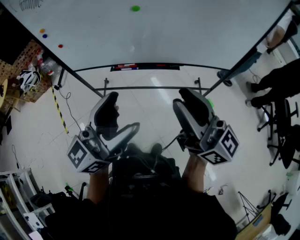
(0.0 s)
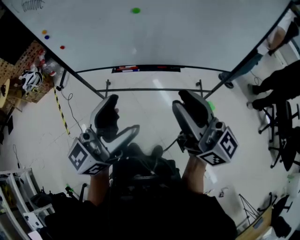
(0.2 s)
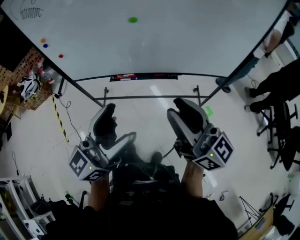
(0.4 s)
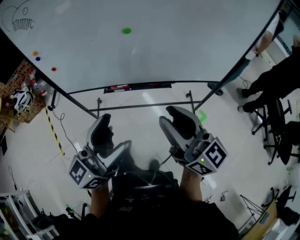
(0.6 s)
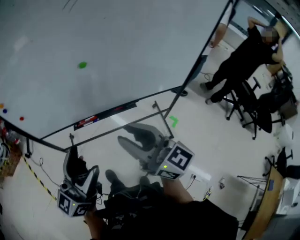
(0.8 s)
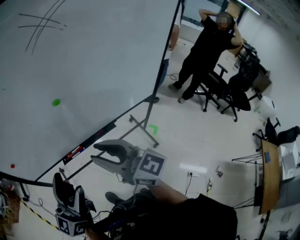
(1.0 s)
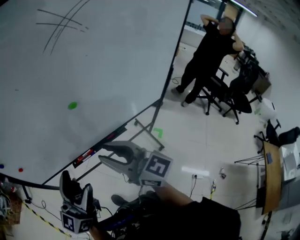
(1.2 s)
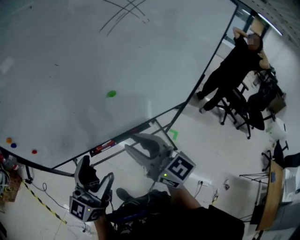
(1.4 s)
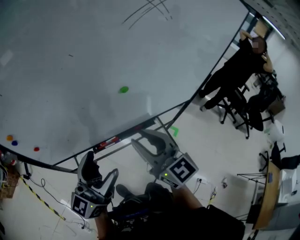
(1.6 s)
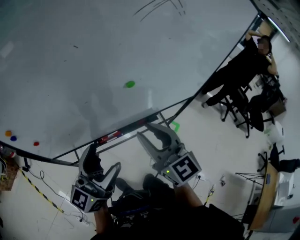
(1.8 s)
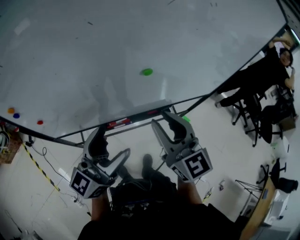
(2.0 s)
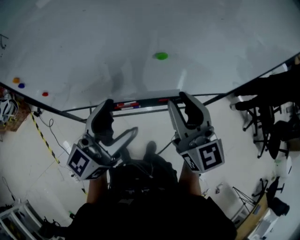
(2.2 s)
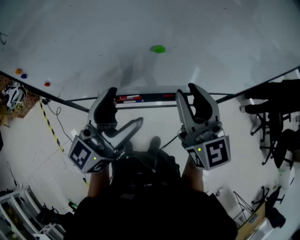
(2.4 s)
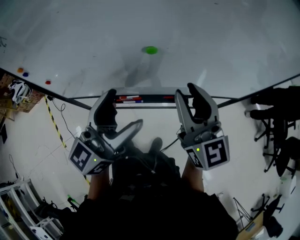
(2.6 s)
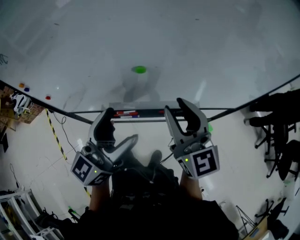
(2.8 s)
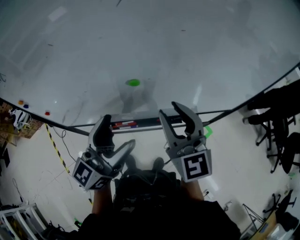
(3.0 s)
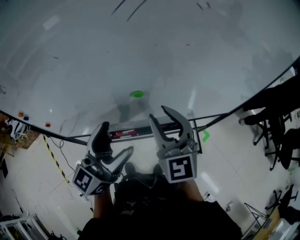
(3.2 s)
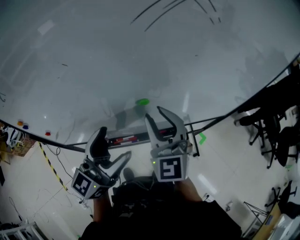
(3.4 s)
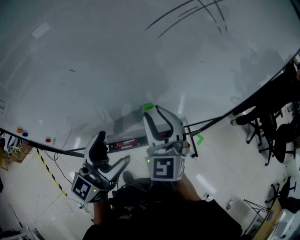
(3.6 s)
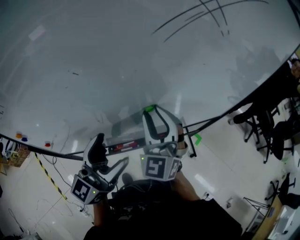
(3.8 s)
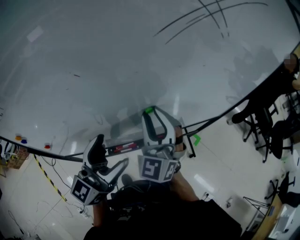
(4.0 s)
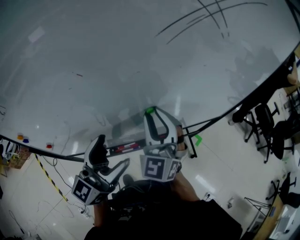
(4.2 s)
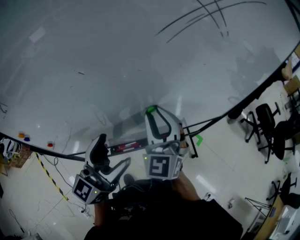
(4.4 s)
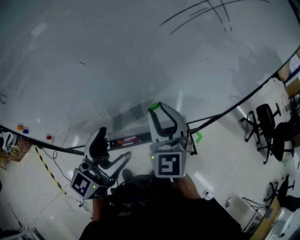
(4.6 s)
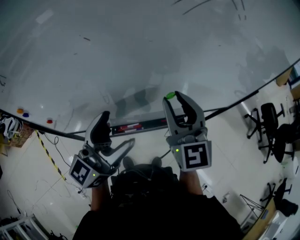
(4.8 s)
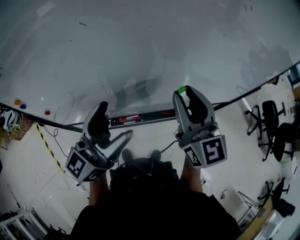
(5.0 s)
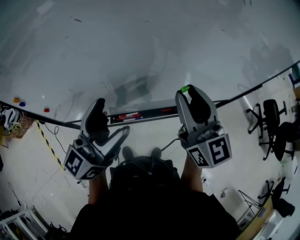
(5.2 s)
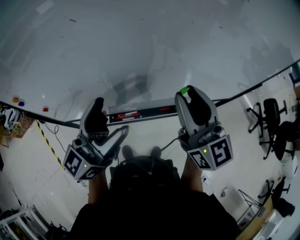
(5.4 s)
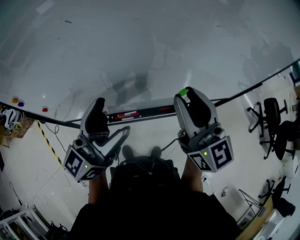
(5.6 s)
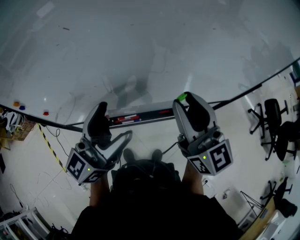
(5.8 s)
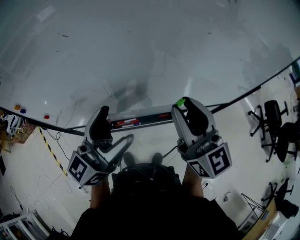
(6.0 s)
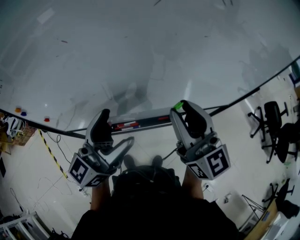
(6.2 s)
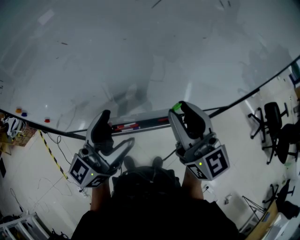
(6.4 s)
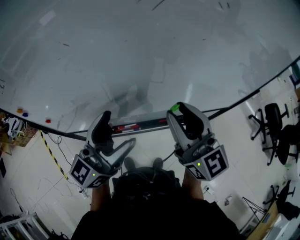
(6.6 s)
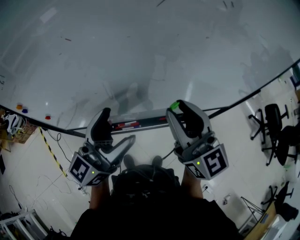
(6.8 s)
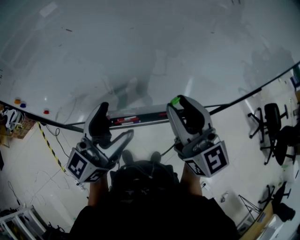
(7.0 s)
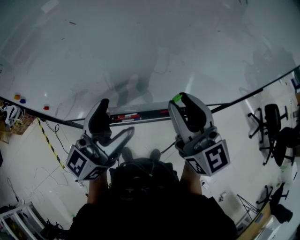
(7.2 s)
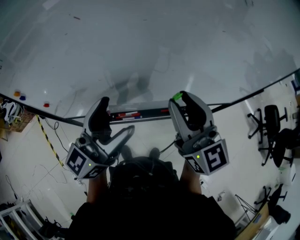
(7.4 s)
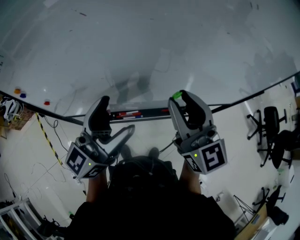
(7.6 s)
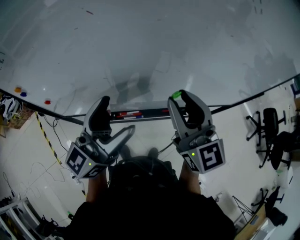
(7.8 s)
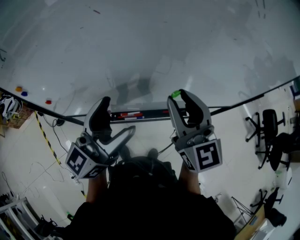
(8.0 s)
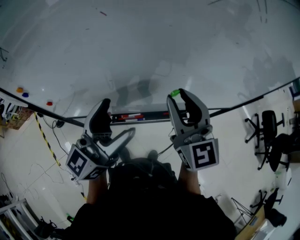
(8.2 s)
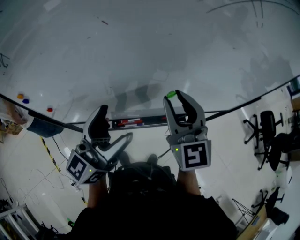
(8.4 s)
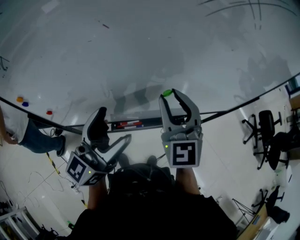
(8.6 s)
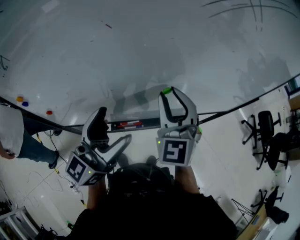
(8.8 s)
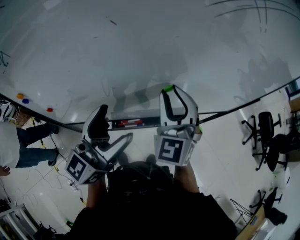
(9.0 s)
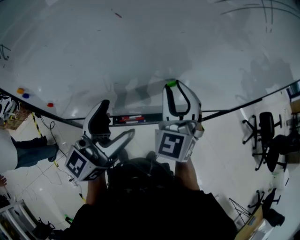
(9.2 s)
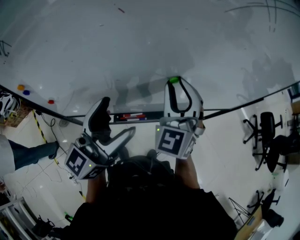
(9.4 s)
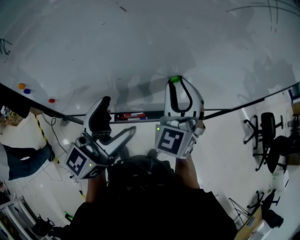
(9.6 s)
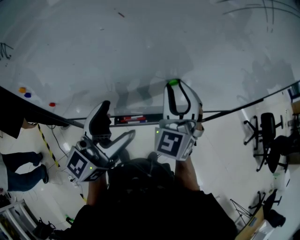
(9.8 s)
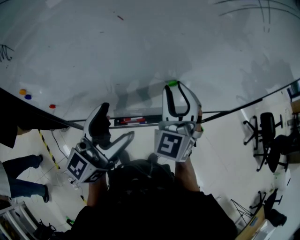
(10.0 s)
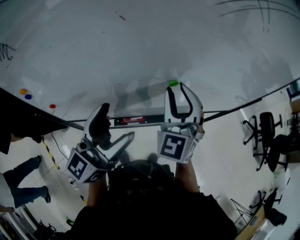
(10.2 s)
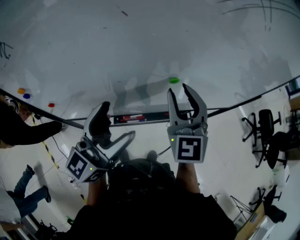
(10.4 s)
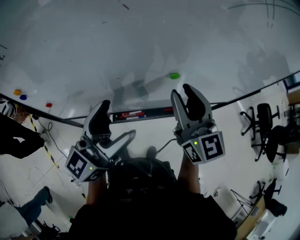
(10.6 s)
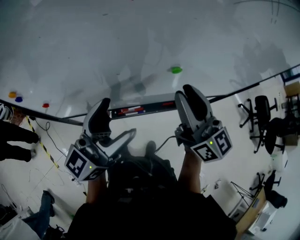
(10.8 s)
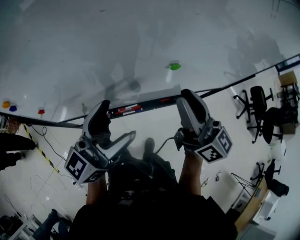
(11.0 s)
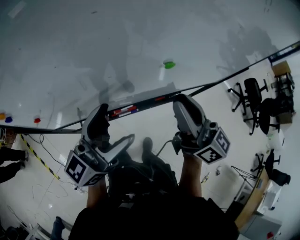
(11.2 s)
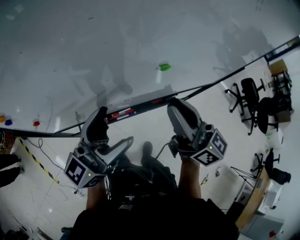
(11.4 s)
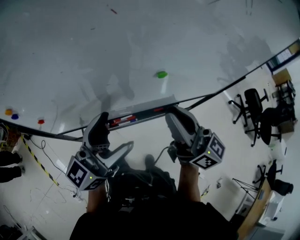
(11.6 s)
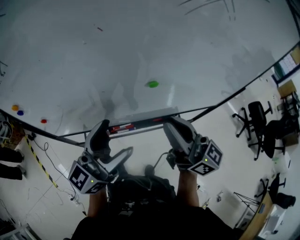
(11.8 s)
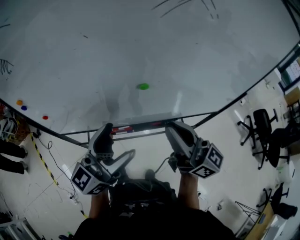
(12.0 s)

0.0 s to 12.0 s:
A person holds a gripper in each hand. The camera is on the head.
0.0 to 1.6 s: The two grippers go approximately 25 cm forward and to the left. The right gripper changes its angle by some 50 degrees.
1.6 to 3.0 s: The two grippers go approximately 15 cm to the right and forward.
3.0 to 4.4 s: Both grippers move to the left, about 10 cm. The right gripper changes its angle by about 30 degrees.
4.4 to 6.0 s: The right gripper heads to the right and backward, covering some 10 cm, and twists about 40 degrees clockwise, seen from behind.
6.0 to 7.6 s: There are only small adjustments of the grippers.
7.6 to 9.0 s: The right gripper moves to the left and forward, some 5 cm, and rotates approximately 40 degrees.
9.0 to 10.4 s: The grippers stay close to where they were, moving slightly.
10.4 to 12.0 s: The left gripper goes approximately 5 cm to the right. Meanwhile the right gripper shifts approximately 15 cm backward and to the right, turns by approximately 60 degrees, and closes.

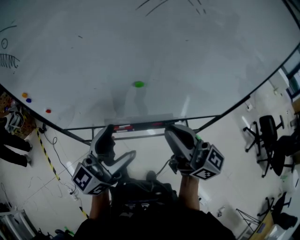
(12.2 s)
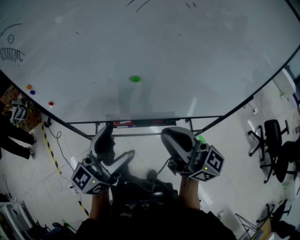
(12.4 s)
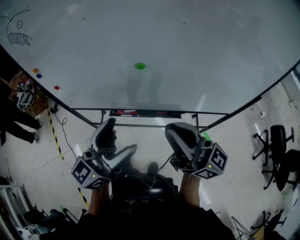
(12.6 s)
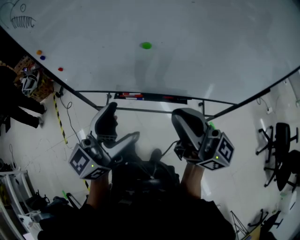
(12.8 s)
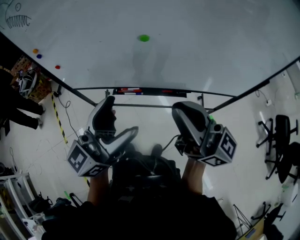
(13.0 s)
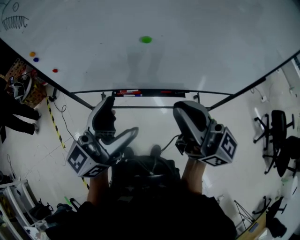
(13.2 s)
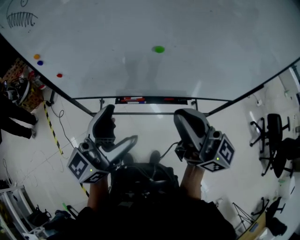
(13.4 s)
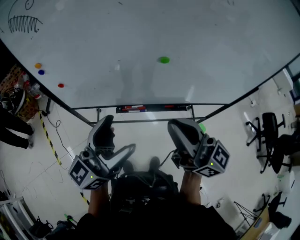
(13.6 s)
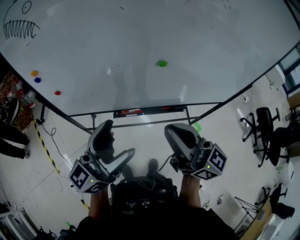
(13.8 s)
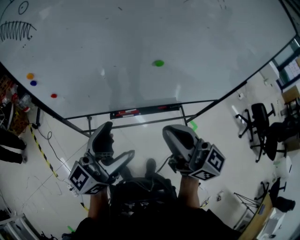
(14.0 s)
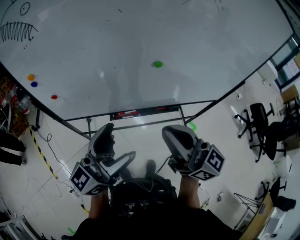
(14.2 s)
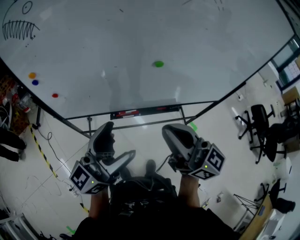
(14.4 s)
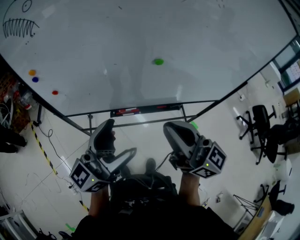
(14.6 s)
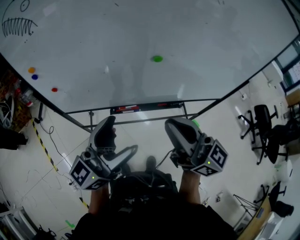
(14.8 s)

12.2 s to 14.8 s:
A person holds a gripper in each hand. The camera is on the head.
12.2 to 13.4 s: The right gripper changes place by approximately 5 cm. The left gripper travels backward by approximately 5 cm.

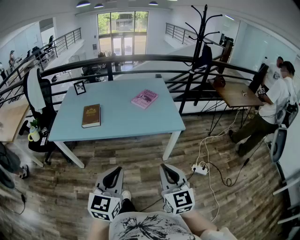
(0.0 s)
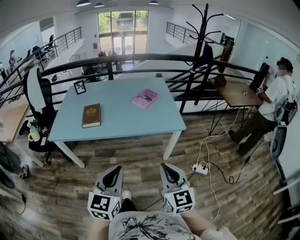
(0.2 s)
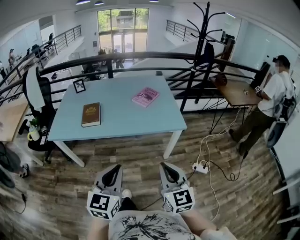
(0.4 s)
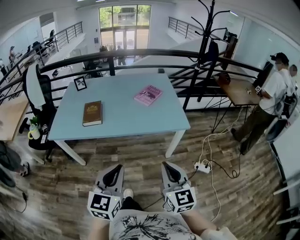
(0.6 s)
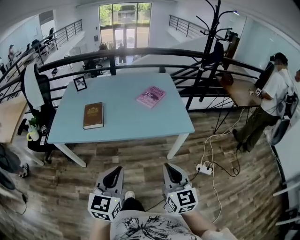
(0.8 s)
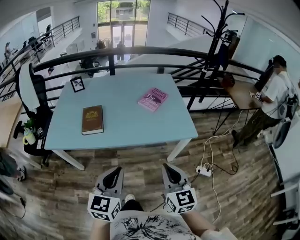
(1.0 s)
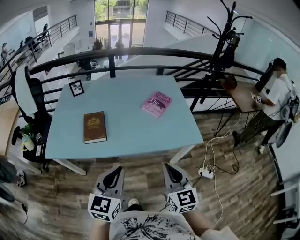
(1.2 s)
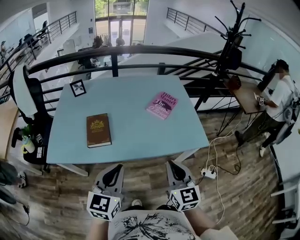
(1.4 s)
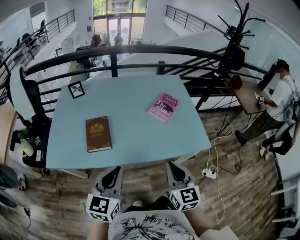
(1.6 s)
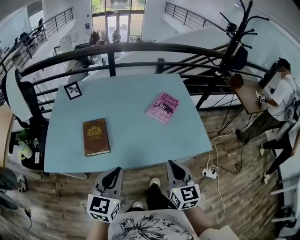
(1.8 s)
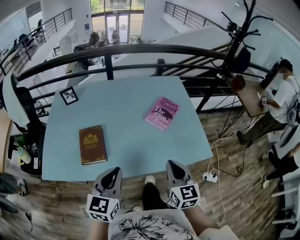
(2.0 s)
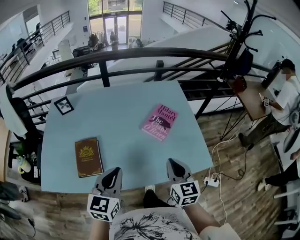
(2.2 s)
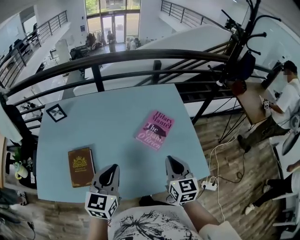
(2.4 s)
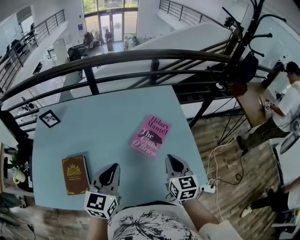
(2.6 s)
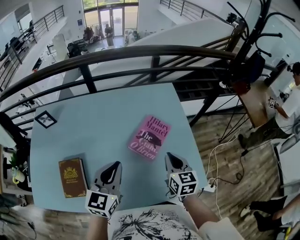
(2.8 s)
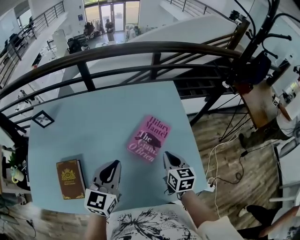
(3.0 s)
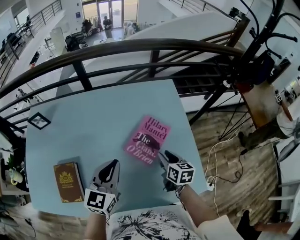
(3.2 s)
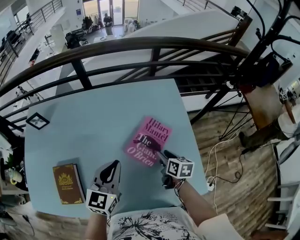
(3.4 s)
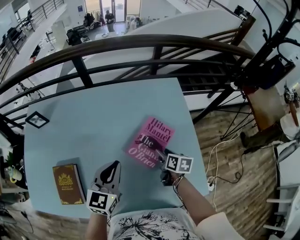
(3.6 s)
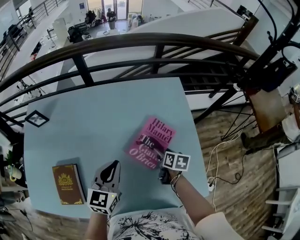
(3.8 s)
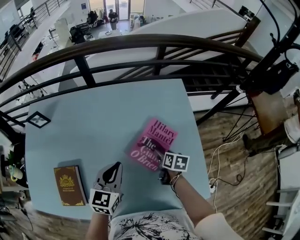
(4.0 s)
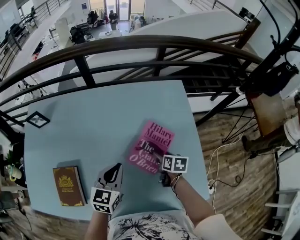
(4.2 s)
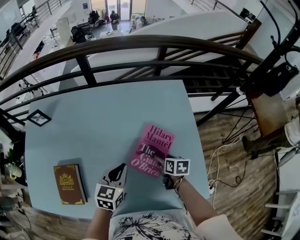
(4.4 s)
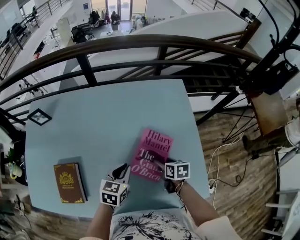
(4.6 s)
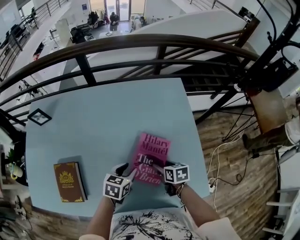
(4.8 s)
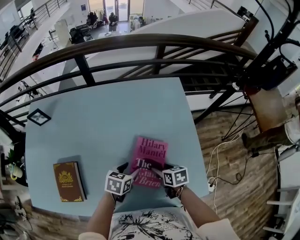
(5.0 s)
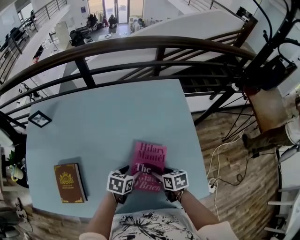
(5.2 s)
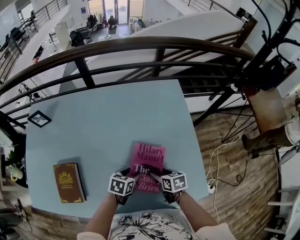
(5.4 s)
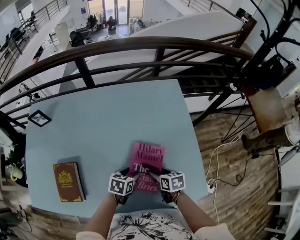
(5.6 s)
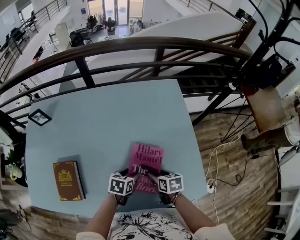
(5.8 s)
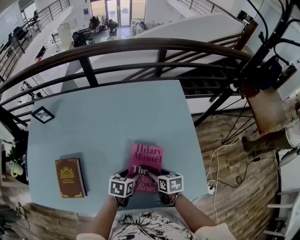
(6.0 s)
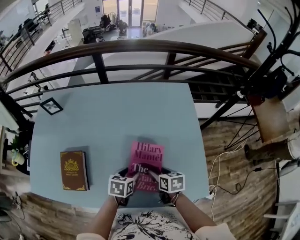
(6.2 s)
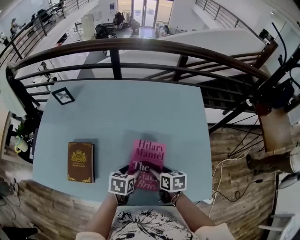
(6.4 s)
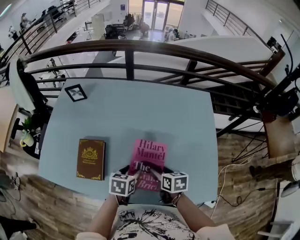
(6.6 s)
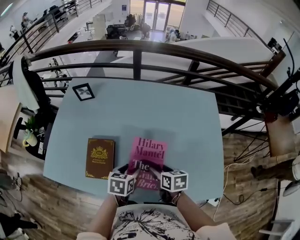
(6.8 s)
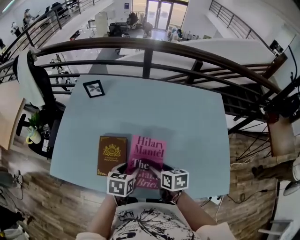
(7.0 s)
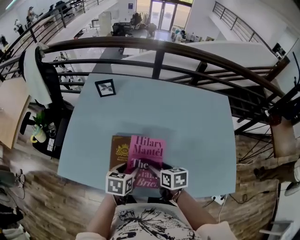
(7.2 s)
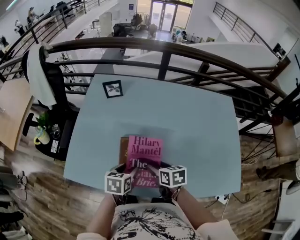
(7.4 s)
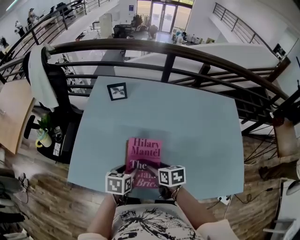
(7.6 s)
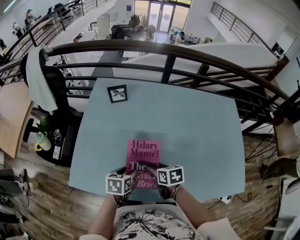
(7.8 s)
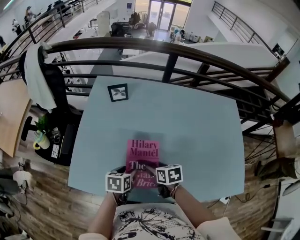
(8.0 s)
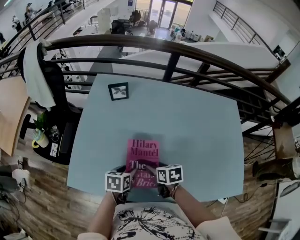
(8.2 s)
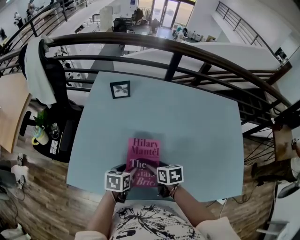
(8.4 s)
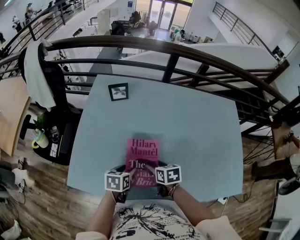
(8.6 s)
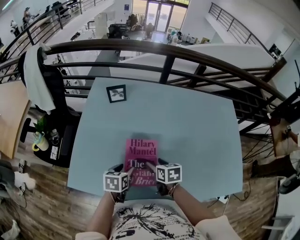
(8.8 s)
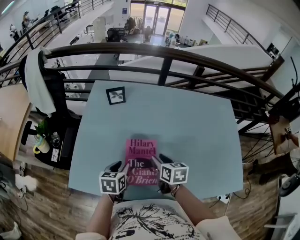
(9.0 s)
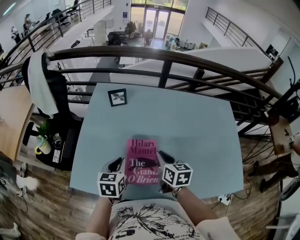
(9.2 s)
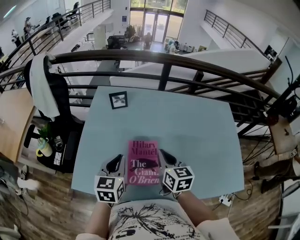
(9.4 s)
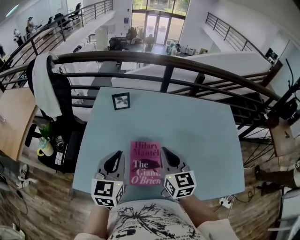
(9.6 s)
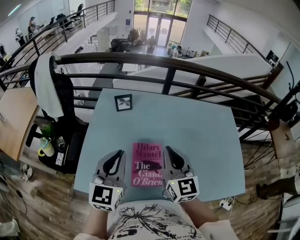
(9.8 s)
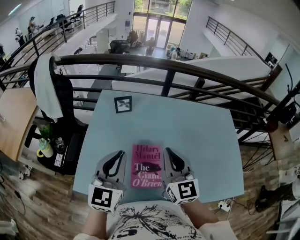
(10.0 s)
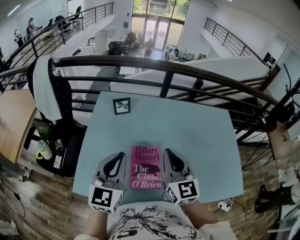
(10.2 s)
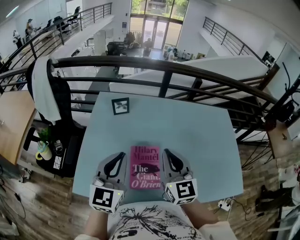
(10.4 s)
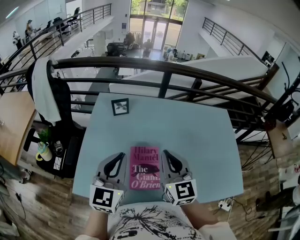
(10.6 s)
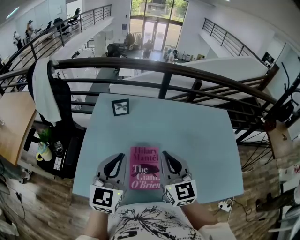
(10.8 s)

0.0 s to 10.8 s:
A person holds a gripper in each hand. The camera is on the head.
0.0 to 1.6 s: Both grippers move forward and to the left, roughly 35 cm.
1.6 to 3.0 s: The two grippers travel together, forward, about 40 cm. The right gripper swivels roughly 20 degrees.
3.0 to 4.6 s: Both grippers travel together downward, some 15 cm. The left gripper swivels about 30 degrees. Meanwhile the right gripper turns by about 30 degrees, and opens.
4.6 to 6.2 s: The left gripper shifts approximately 10 cm backward, and opens up, while the right gripper goes some 10 cm backward and to the left.
6.2 to 7.8 s: The pair of grippers is taken to the left, approximately 40 cm.
7.8 to 9.2 s: The grippers both shift upward by some 10 cm. The left gripper rotates some 20 degrees, and closes up. Meanwhile the right gripper swivels approximately 30 degrees, and closes up.
9.2 to 10.8 s: Both grippers travel together upward, some 20 cm. The left gripper turns by some 30 degrees; the right gripper changes its angle by roughly 40 degrees.
